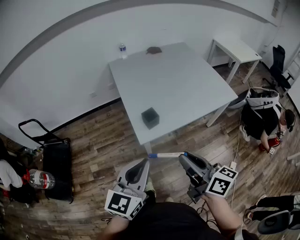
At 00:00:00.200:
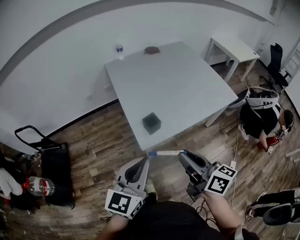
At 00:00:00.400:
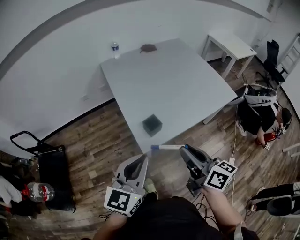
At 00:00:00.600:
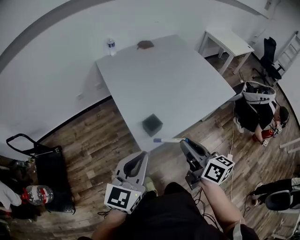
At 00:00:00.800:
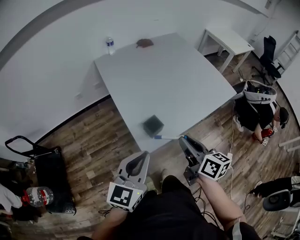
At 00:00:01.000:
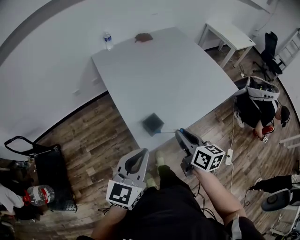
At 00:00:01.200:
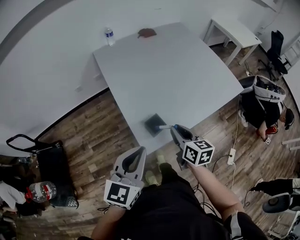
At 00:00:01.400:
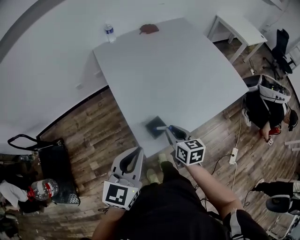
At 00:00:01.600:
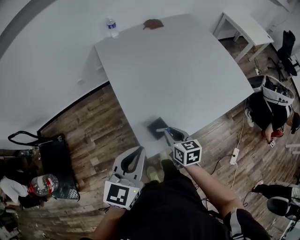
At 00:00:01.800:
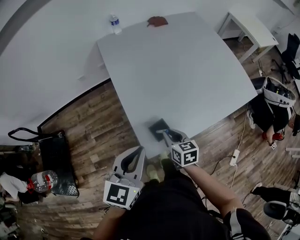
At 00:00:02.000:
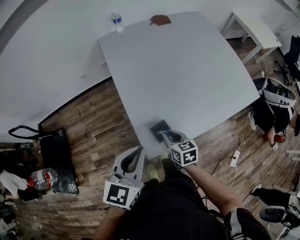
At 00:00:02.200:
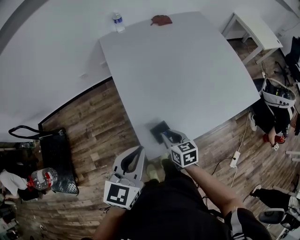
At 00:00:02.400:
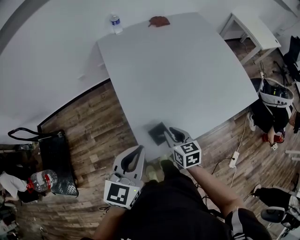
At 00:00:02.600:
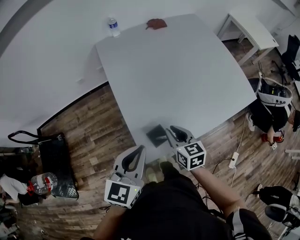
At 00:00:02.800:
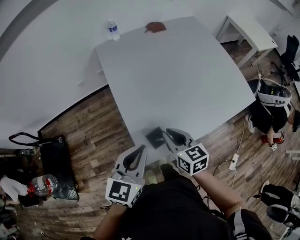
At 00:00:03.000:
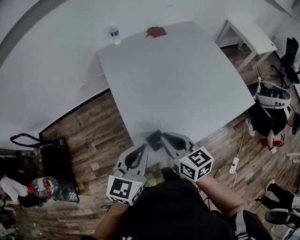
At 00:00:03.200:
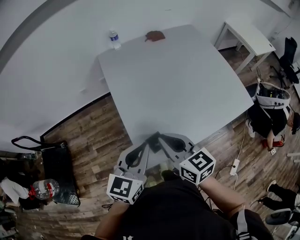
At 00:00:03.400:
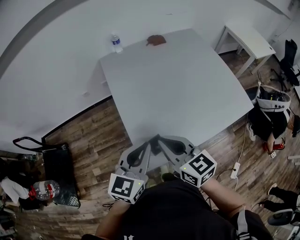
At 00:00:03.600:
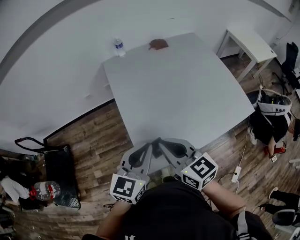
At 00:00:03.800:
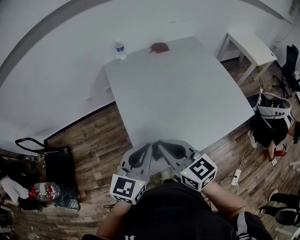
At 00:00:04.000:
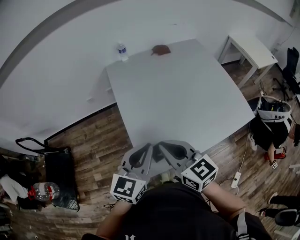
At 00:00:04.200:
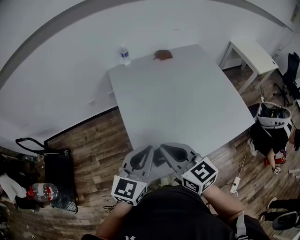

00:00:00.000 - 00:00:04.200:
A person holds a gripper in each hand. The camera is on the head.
00:00:00.000 - 00:00:01.400: The left gripper goes about 20 cm forward. The right gripper is displaced forward and downward by about 30 cm, and turns by roughly 30 degrees.
00:00:01.400 - 00:00:02.800: The right gripper shifts by some 5 cm. The left gripper travels forward by roughly 5 cm.
00:00:02.800 - 00:00:04.200: The left gripper changes place by about 5 cm; the right gripper shifts about 15 cm upward, and changes its angle by approximately 20 degrees.

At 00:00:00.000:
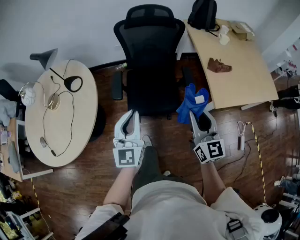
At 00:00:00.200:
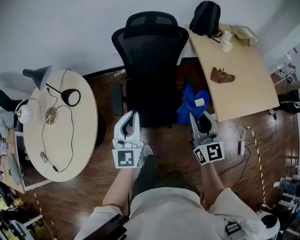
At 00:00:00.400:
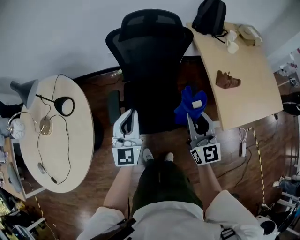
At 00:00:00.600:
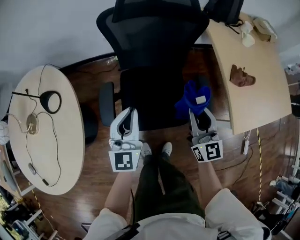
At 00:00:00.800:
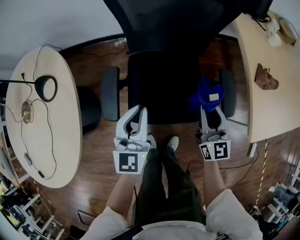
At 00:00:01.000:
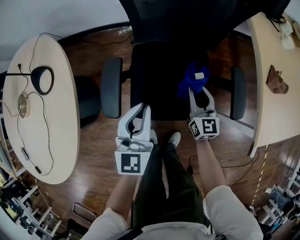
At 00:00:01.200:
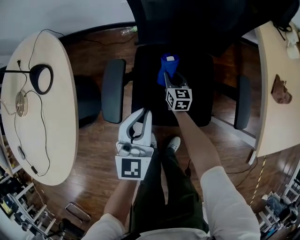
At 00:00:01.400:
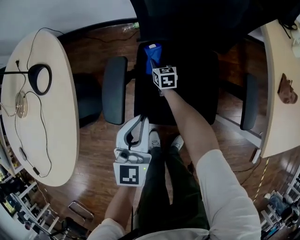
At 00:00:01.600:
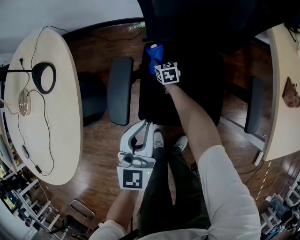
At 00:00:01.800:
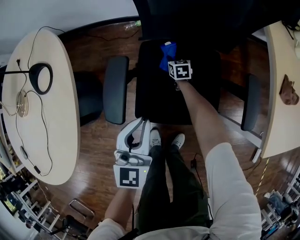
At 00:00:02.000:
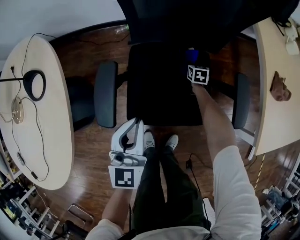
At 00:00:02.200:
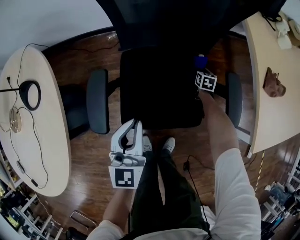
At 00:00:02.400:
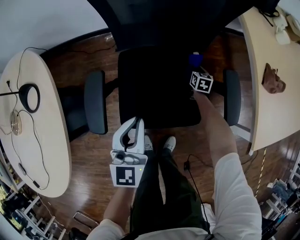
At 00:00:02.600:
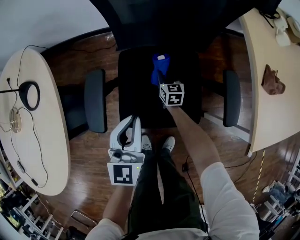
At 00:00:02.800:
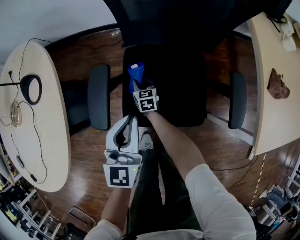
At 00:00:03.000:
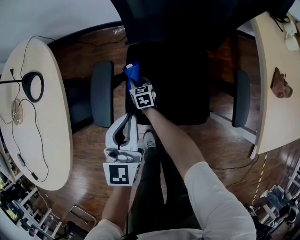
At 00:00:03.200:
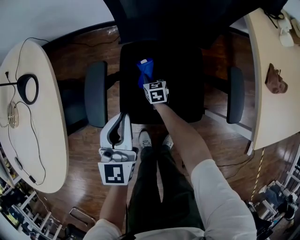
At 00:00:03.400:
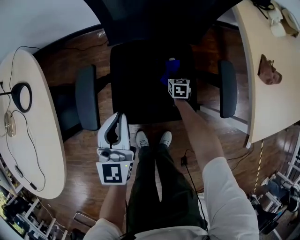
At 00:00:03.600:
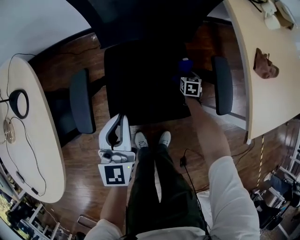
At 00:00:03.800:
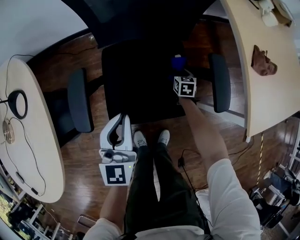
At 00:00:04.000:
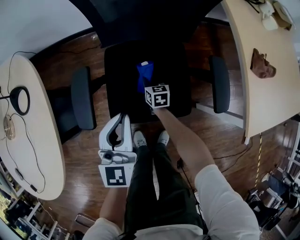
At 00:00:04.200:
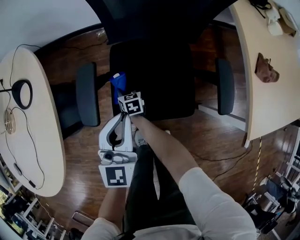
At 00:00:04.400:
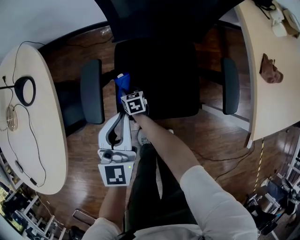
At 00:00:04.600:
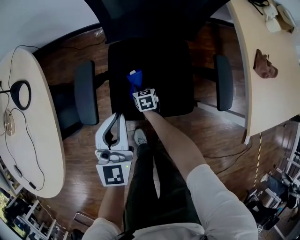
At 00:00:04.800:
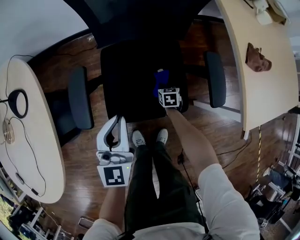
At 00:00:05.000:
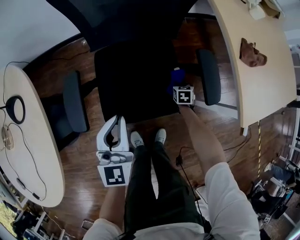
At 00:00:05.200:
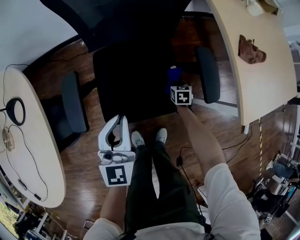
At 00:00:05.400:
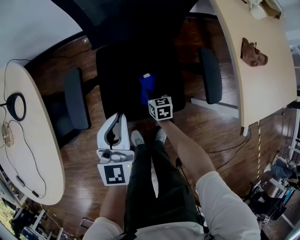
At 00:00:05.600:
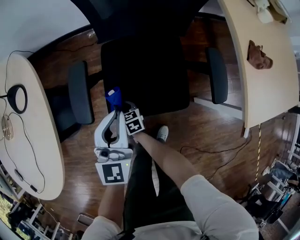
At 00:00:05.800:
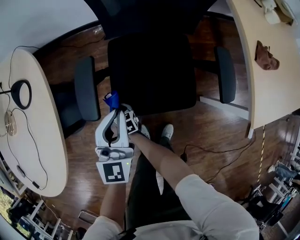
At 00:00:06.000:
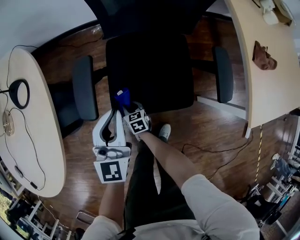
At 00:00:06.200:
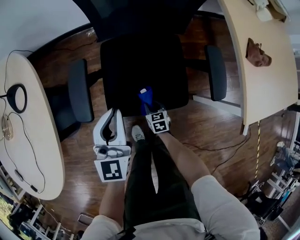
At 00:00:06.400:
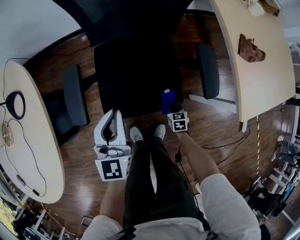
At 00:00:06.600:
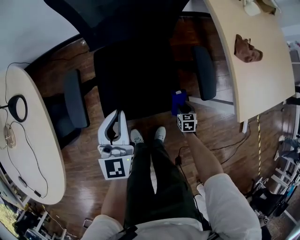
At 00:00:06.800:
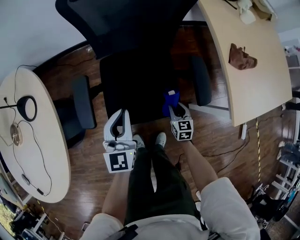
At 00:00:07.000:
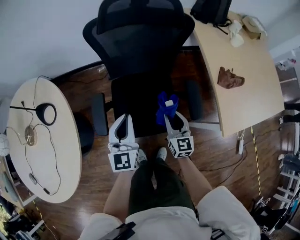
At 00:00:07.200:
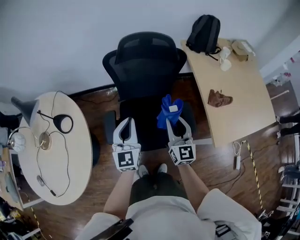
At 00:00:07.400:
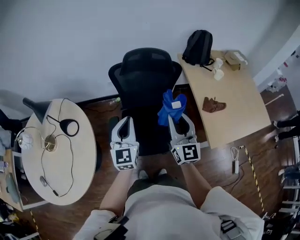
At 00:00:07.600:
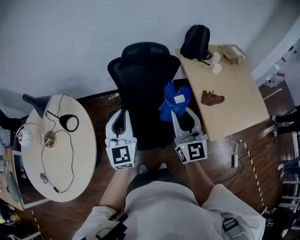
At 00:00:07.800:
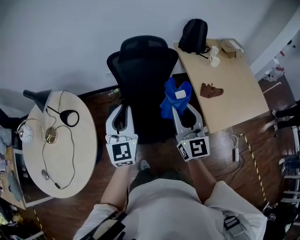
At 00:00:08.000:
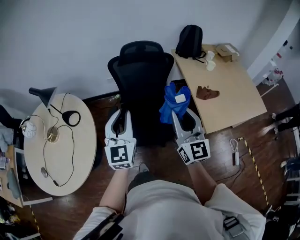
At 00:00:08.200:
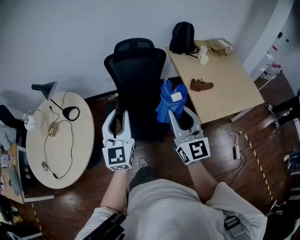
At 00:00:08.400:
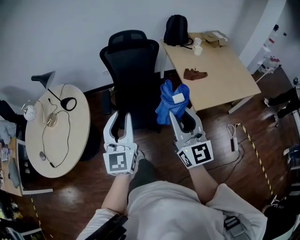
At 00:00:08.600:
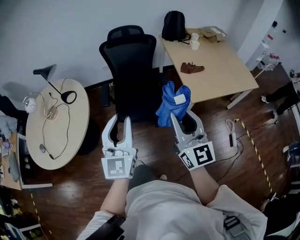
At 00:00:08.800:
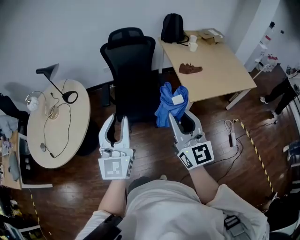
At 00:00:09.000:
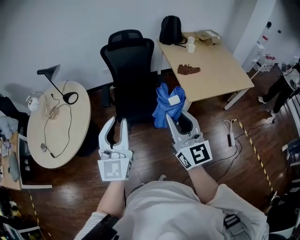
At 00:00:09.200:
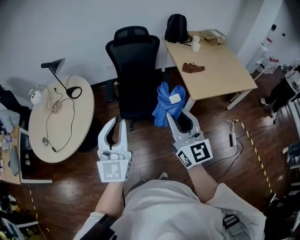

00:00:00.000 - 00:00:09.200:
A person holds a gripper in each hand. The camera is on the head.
00:00:00.000 - 00:00:01.600: The right gripper heads downward and forward, covering approximately 1 m, and tilts its fingers about 50 degrees downward; the left gripper is displaced downward and forward by some 50 cm.
00:00:01.600 - 00:00:03.000: The right gripper goes about 10 cm backward, and moves about 35 cm to the right and comes back.
00:00:03.000 - 00:00:04.600: The right gripper goes left and right, approximately 35 cm each way, reversing 2 times.
00:00:04.600 - 00:00:06.200: The right gripper swings left and right, approximately 35 cm each way, with 2 reversals.
00:00:06.200 - 00:00:07.600: The left gripper shifts some 50 cm upward, while the right gripper is displaced upward by roughly 1 m, and tips its fingers upward by approximately 70 degrees.
00:00:07.600 - 00:00:09.200: The two grippers travel together, backward, some 50 cm.

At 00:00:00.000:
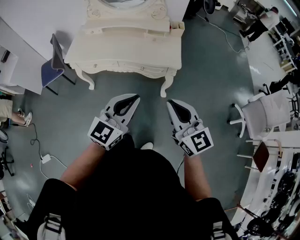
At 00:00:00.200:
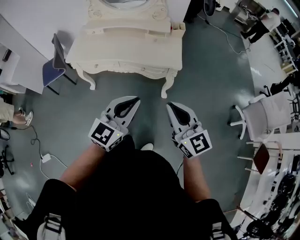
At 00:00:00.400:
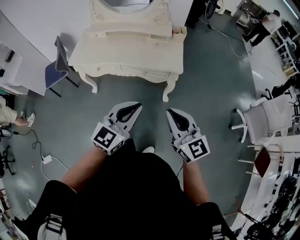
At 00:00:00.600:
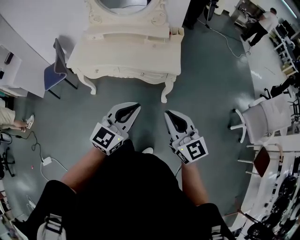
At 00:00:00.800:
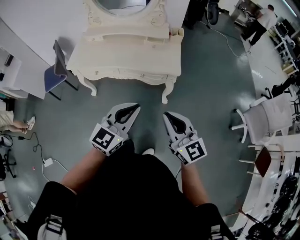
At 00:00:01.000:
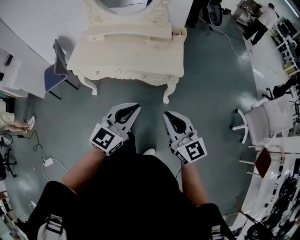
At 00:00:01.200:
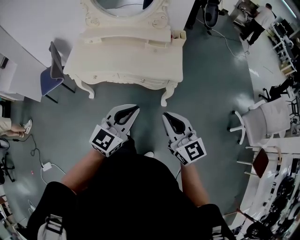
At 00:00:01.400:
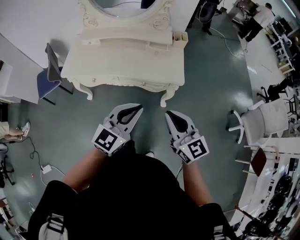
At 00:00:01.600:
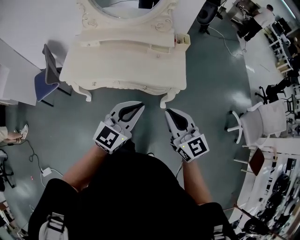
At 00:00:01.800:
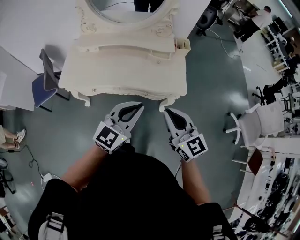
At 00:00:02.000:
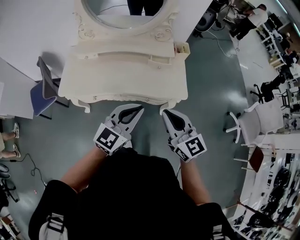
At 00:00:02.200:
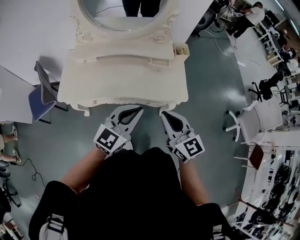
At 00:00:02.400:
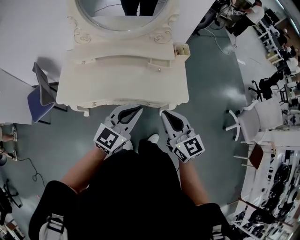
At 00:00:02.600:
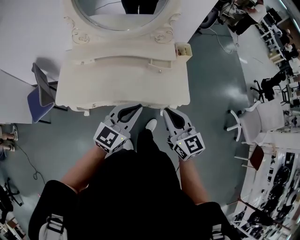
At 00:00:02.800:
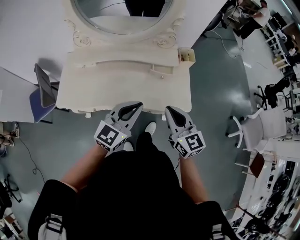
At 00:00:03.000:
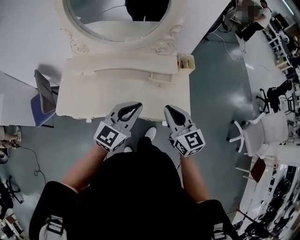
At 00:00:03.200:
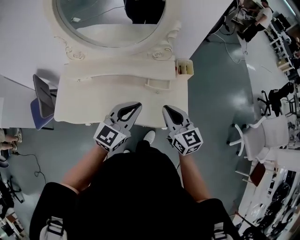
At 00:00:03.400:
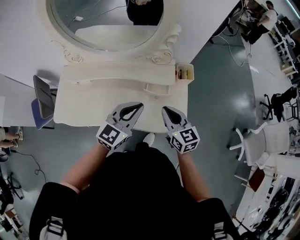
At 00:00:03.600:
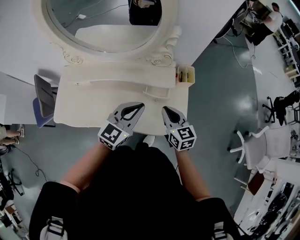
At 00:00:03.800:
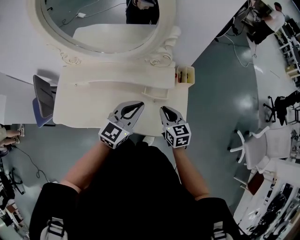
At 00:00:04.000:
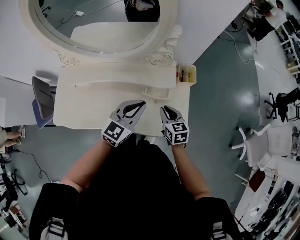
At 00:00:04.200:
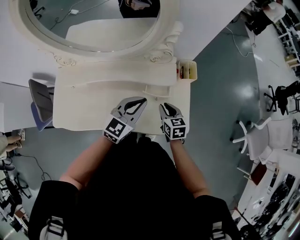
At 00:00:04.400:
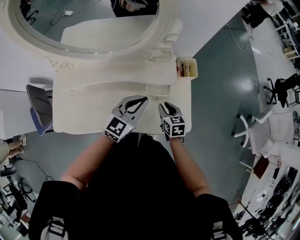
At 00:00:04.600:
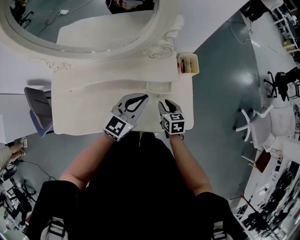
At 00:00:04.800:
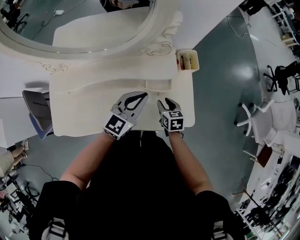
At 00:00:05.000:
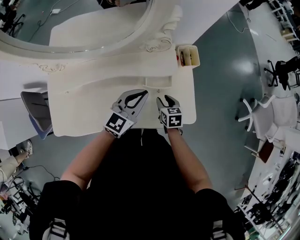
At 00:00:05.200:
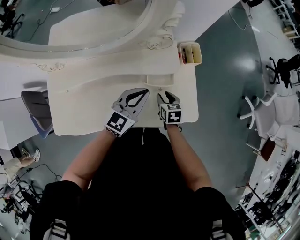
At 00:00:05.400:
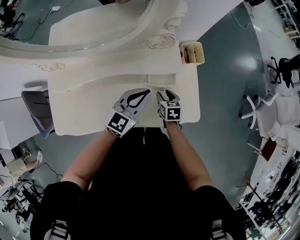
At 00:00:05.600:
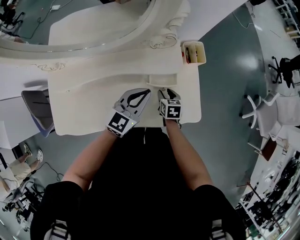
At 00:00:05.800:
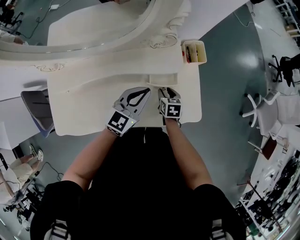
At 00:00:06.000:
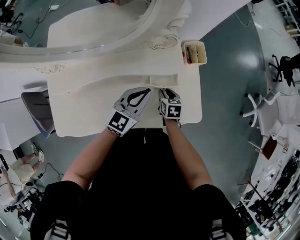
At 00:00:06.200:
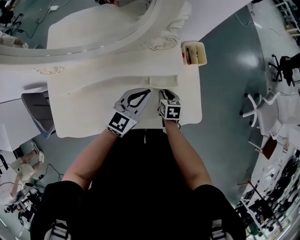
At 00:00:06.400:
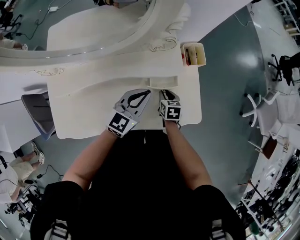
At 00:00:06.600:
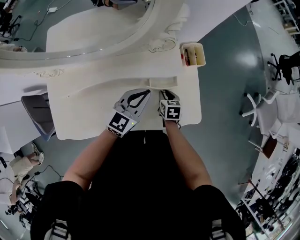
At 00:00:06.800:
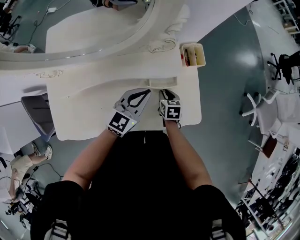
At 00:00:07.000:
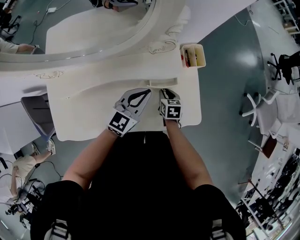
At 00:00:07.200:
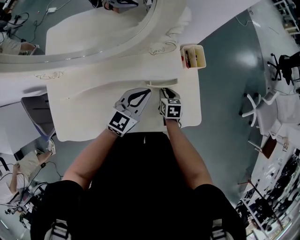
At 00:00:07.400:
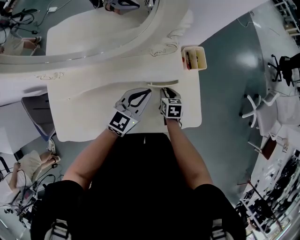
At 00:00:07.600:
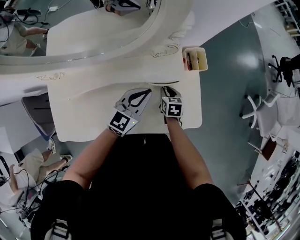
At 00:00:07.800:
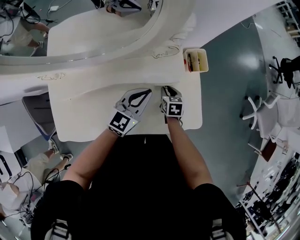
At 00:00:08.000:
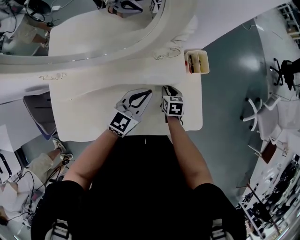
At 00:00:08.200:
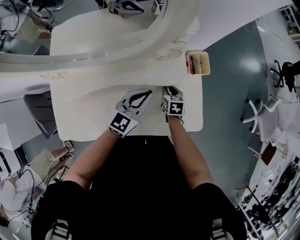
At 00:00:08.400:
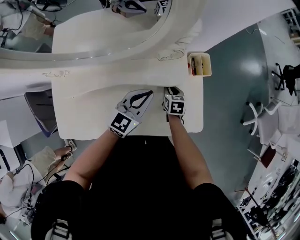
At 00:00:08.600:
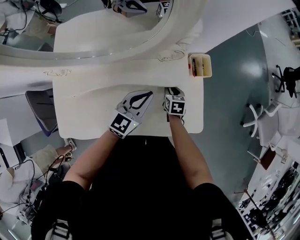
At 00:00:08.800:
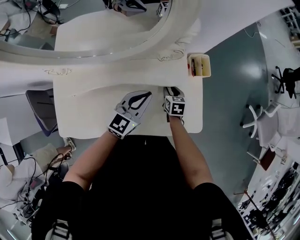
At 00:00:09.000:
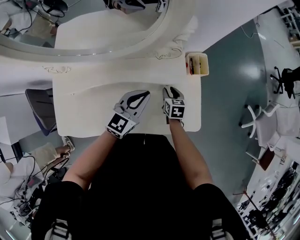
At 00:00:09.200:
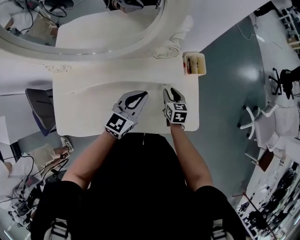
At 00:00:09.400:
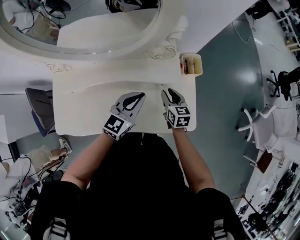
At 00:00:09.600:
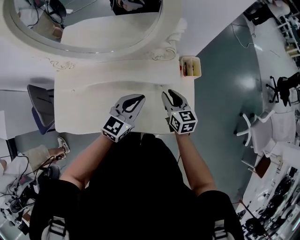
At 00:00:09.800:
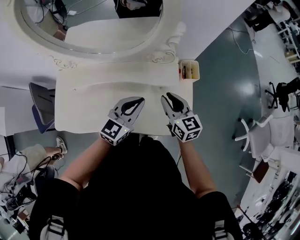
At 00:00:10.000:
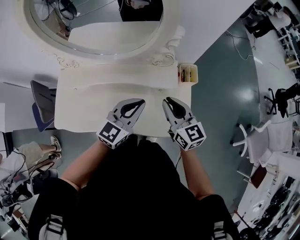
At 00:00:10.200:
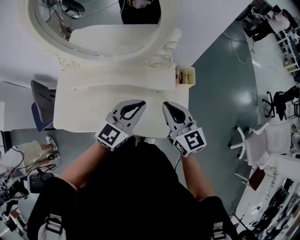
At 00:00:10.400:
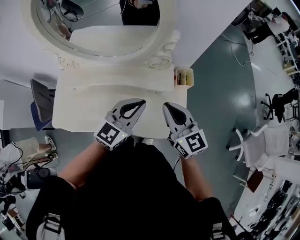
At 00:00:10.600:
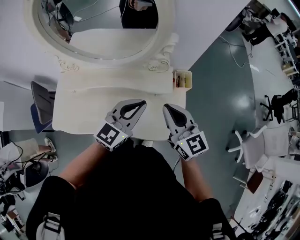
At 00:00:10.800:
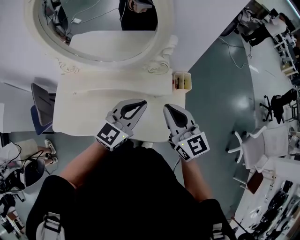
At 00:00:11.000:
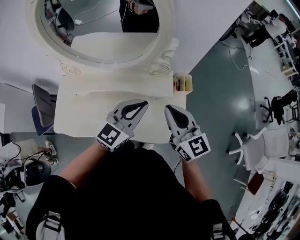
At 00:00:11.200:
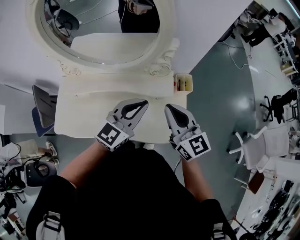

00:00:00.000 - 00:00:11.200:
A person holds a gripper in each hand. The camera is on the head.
00:00:00.000 - 00:00:01.600: The right gripper goes some 15 cm forward and to the left. The left gripper goes roughly 15 cm forward.
00:00:01.600 - 00:00:03.200: Both grippers travel together forward, about 30 cm.
00:00:03.200 - 00:00:04.800: The left gripper shifts roughly 15 cm forward and downward. Meanwhile the right gripper moves downward and forward, about 25 cm, tilts its fingers roughly 30 degrees downward, and opens its fingers.
00:00:04.800 - 00:00:06.400: The right gripper travels downward by some 5 cm.
00:00:06.400 - 00:00:08.000: The right gripper is displaced forward by approximately 5 cm.
00:00:08.000 - 00:00:09.600: The left gripper shifts approximately 10 cm backward and upward; the right gripper is displaced upward by some 15 cm, and rotates approximately 30 degrees.
00:00:09.600 - 00:00:11.200: The right gripper is displaced upward by some 20 cm, rotates some 30 degrees, and closes its fingers. The left gripper goes approximately 15 cm upward.
